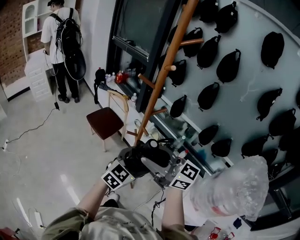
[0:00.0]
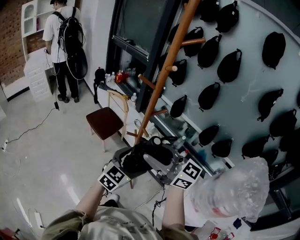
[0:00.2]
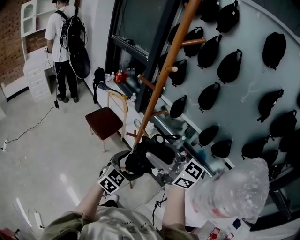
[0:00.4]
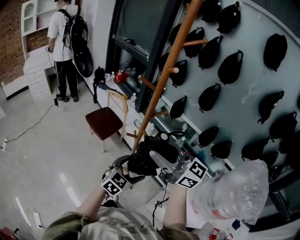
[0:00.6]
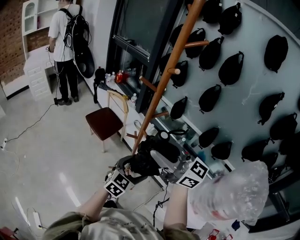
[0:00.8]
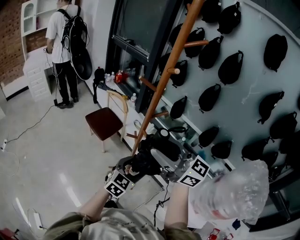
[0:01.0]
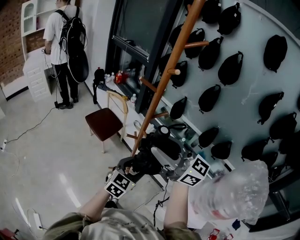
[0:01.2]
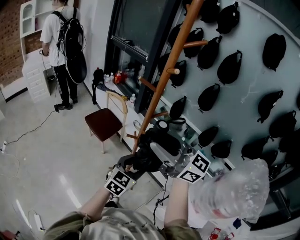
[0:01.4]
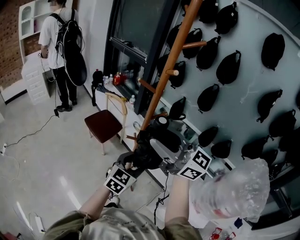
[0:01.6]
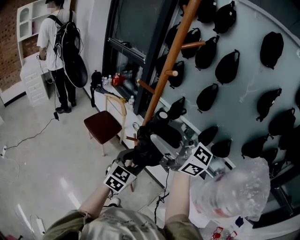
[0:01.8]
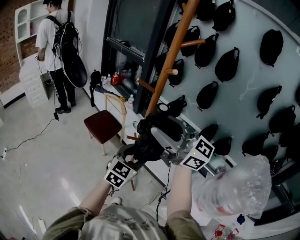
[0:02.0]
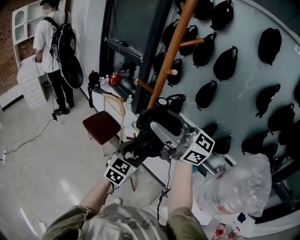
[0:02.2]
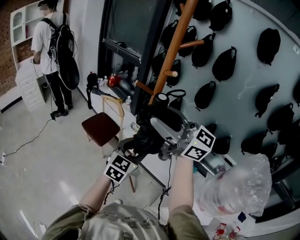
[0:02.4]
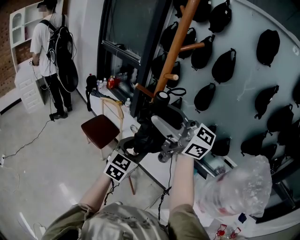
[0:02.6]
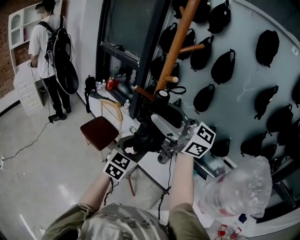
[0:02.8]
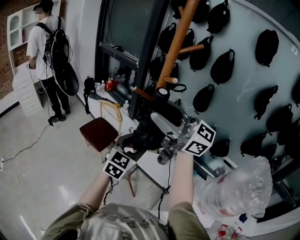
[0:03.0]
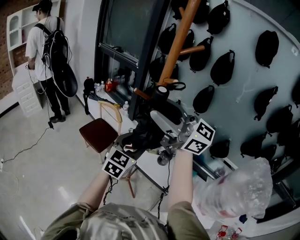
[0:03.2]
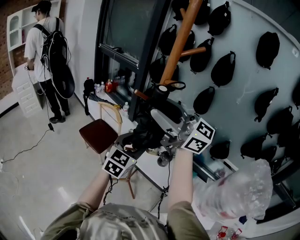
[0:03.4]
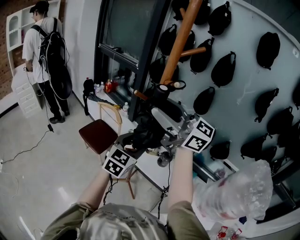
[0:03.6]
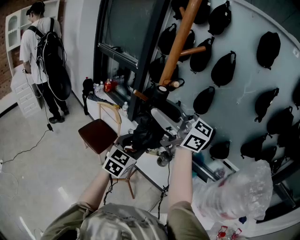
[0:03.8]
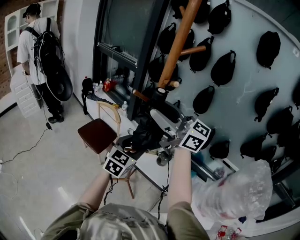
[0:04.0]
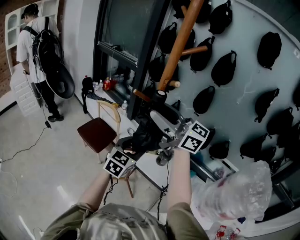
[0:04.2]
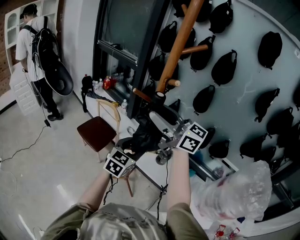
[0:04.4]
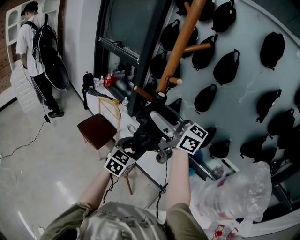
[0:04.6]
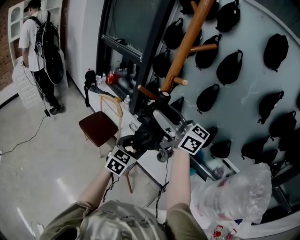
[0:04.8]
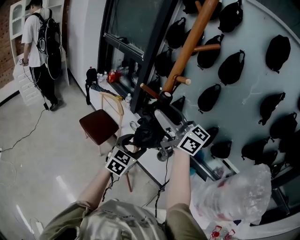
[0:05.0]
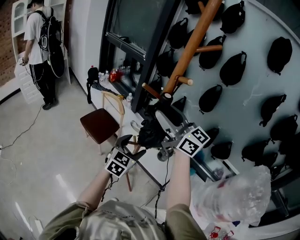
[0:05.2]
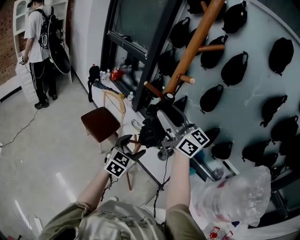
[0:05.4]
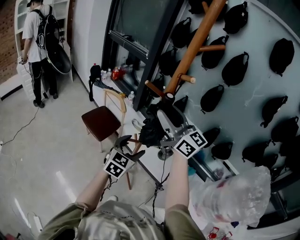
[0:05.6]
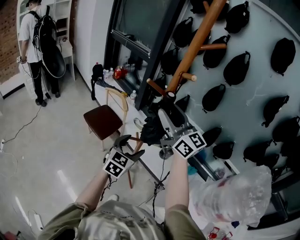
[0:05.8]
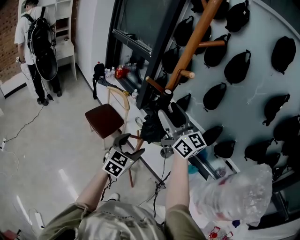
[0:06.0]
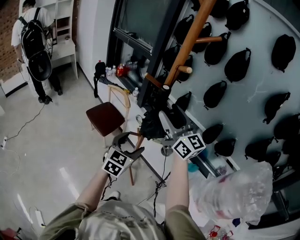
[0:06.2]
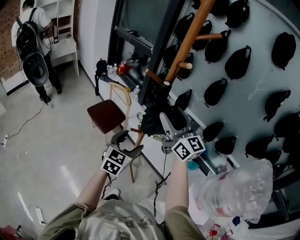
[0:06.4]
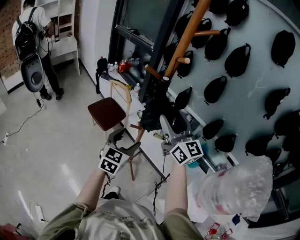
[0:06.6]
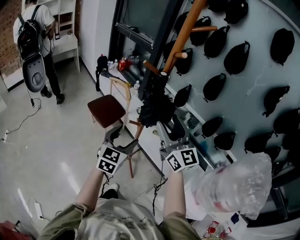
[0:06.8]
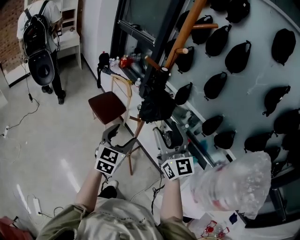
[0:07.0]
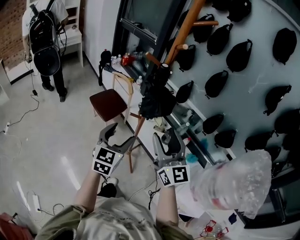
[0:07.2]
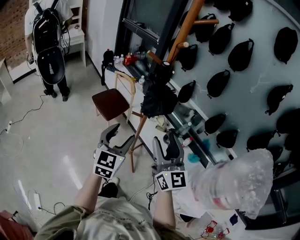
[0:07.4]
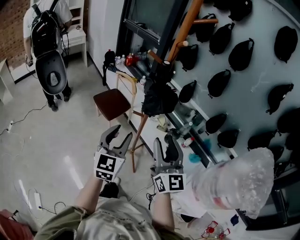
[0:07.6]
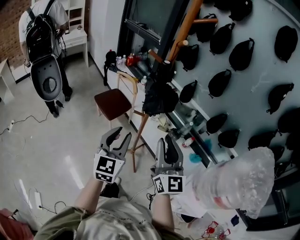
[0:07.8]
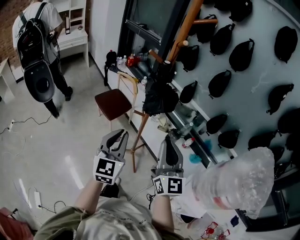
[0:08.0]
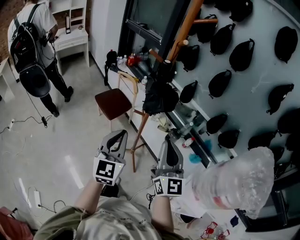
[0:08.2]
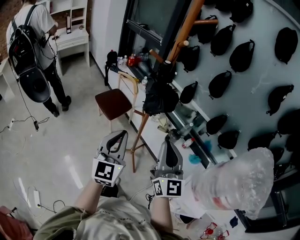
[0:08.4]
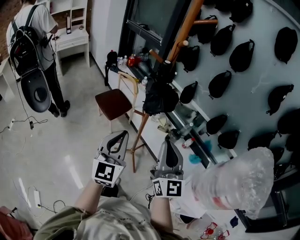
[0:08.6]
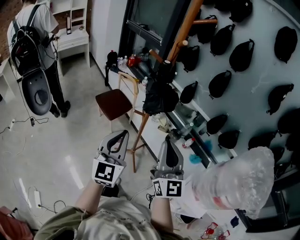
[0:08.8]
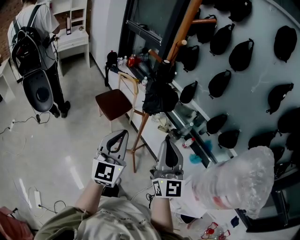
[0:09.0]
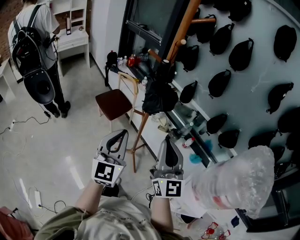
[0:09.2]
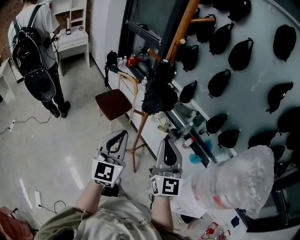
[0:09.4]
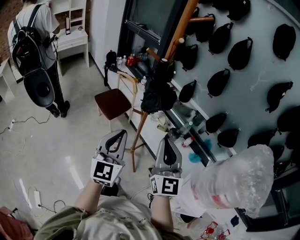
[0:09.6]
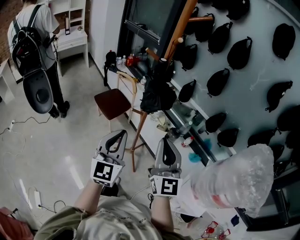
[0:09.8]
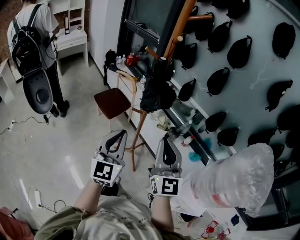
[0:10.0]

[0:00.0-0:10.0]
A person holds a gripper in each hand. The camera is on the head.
0:00.0 to 0:01.4: The right gripper moves upward, about 5 cm.
0:01.4 to 0:02.8: Both grippers travel together forward and upward, about 10 cm.
0:02.8 to 0:04.2: The right gripper heads forward, covering about 5 cm, while the left gripper changes place by approximately 5 cm.
0:04.2 to 0:05.8: Both grippers travel together downward, roughly 5 cm.
0:05.8 to 0:07.2: The right gripper is displaced backward and downward by roughly 20 cm, while the left gripper goes roughly 10 cm backward.
0:07.2 to 0:08.6: The left gripper moves backward and upward, roughly 10 cm, and closes up. Meanwhile the right gripper is displaced backward by roughly 5 cm, and closes up.
0:08.6 to 0:10.0: The grippers stay close to where they were, moving slightly.

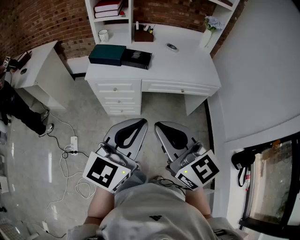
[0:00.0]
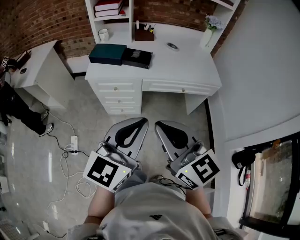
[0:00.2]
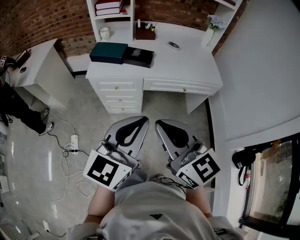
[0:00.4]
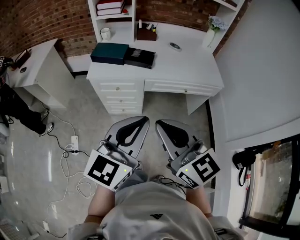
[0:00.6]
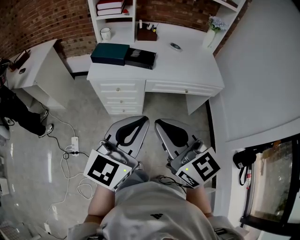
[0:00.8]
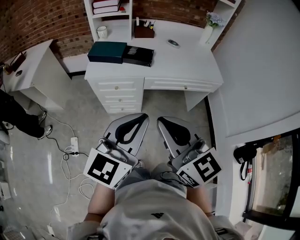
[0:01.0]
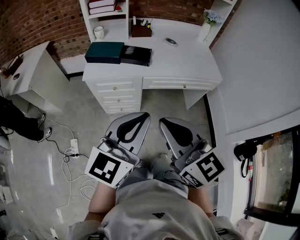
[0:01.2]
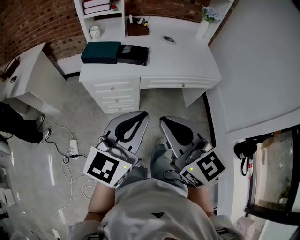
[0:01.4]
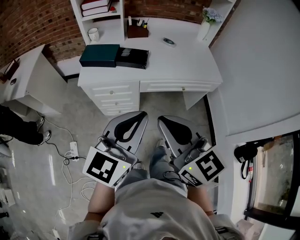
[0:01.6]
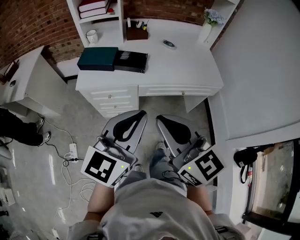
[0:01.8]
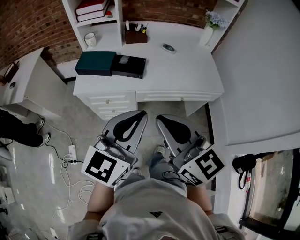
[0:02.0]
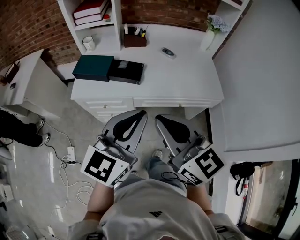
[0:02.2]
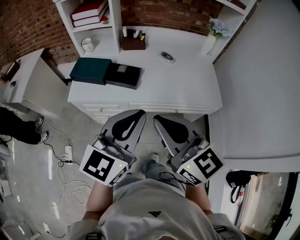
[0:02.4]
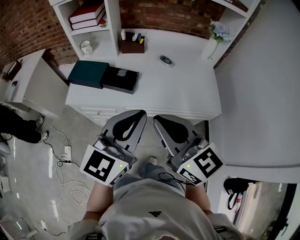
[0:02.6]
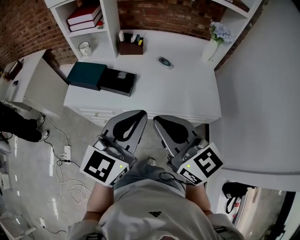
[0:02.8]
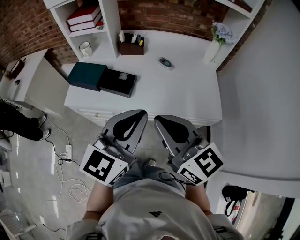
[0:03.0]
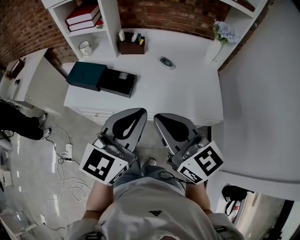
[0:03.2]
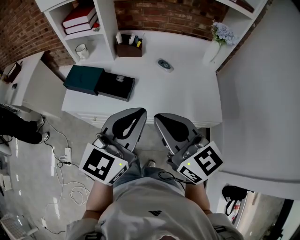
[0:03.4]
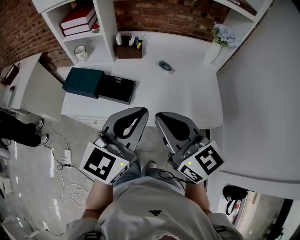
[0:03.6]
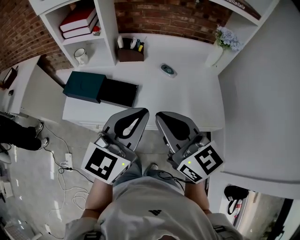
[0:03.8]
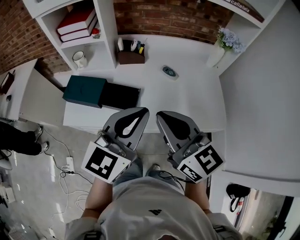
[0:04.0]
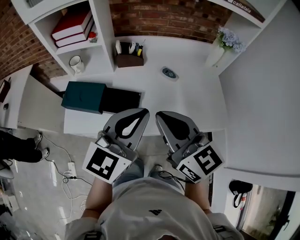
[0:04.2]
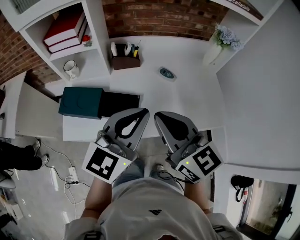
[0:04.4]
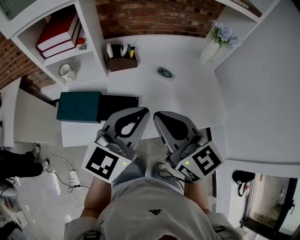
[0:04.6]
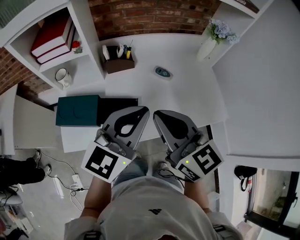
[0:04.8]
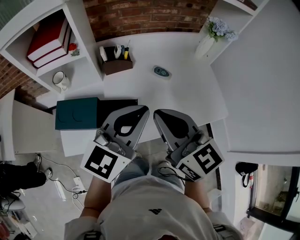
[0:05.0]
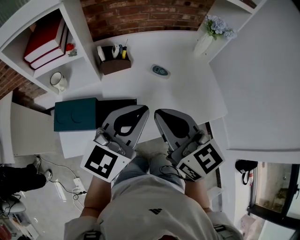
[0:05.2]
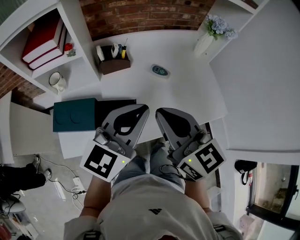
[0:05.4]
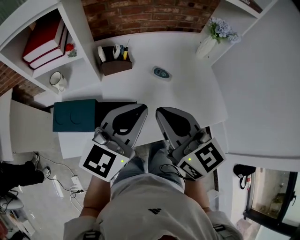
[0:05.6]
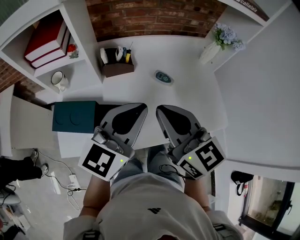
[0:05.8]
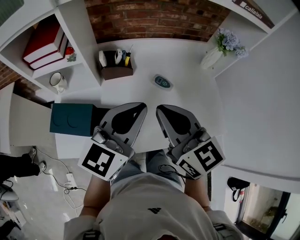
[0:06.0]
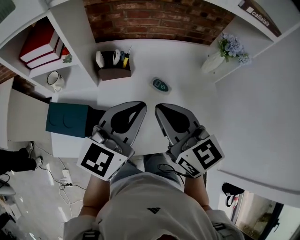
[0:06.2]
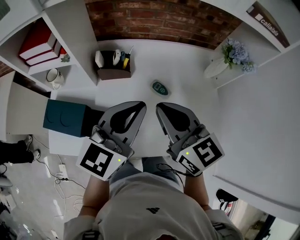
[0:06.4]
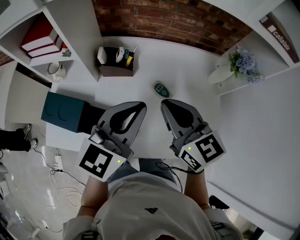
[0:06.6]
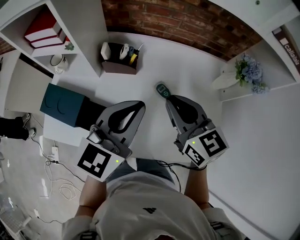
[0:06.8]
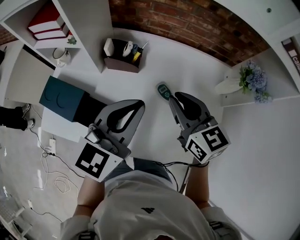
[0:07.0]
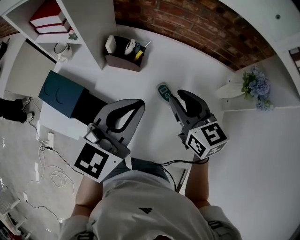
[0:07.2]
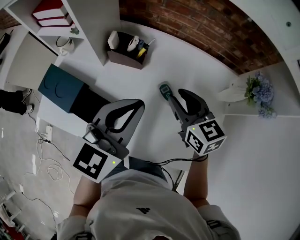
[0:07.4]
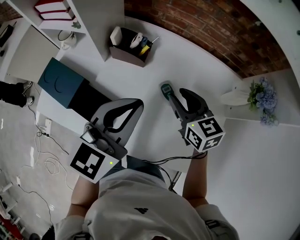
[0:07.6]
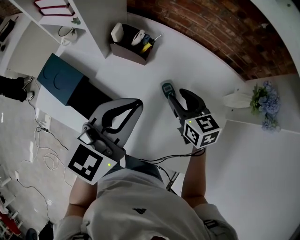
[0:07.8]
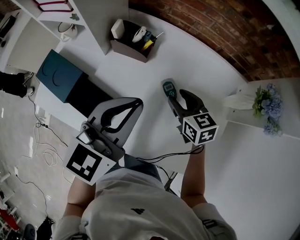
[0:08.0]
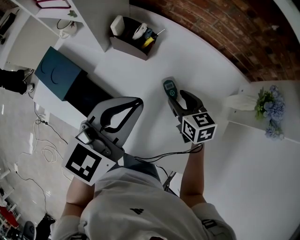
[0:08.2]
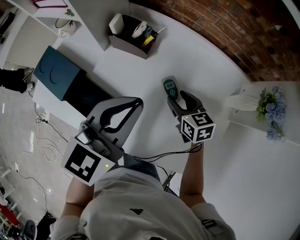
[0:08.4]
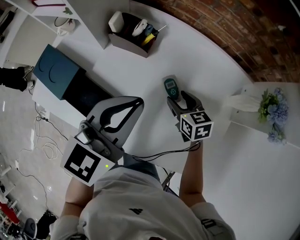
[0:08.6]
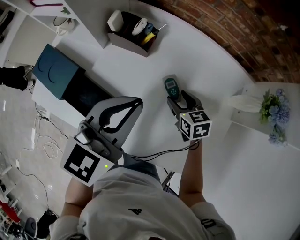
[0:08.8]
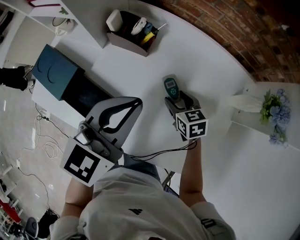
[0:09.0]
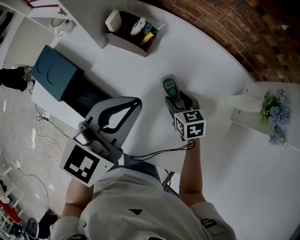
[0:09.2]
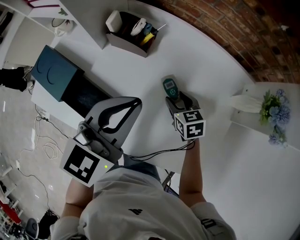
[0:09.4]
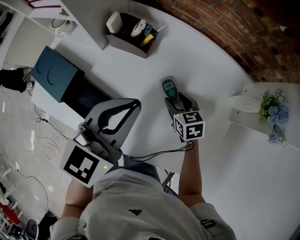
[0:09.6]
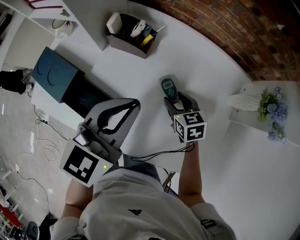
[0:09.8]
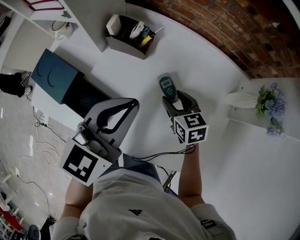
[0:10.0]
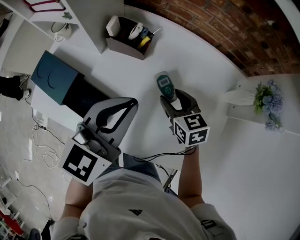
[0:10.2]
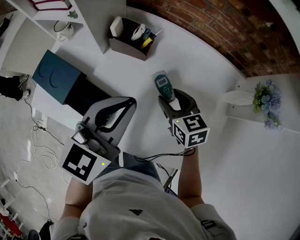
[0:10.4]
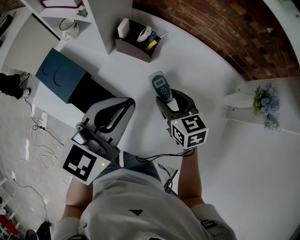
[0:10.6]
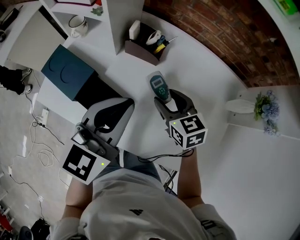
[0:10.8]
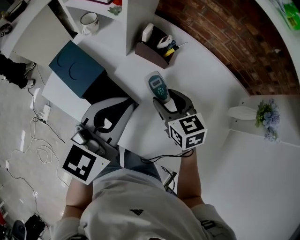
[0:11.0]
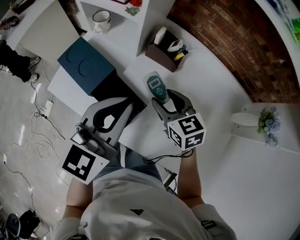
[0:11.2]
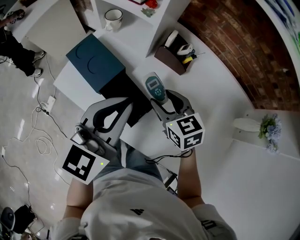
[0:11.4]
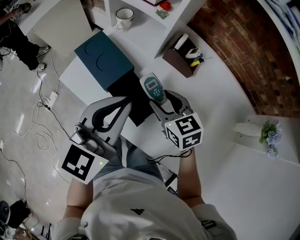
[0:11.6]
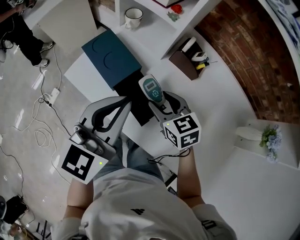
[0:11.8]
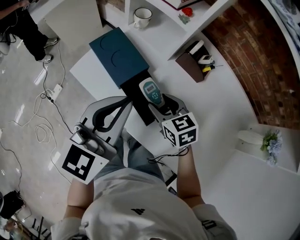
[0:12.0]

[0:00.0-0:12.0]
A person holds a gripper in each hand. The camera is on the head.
0:00.0 to 0:01.6: Both grippers travel together forward, approximately 10 cm.
0:01.6 to 0:03.0: The grippers both shift forward and to the right by some 25 cm.
0:03.0 to 0:04.4: Both grippers move forward and to the left, roughly 15 cm.
0:04.4 to 0:06.0: Both grippers travel together forward, some 10 cm.
0:06.0 to 0:07.6: The right gripper goes about 25 cm forward, downward and to the right, turns by about 30 degrees, and opens; the left gripper goes some 5 cm forward, and changes its angle by approximately 30 degrees.
0:07.6 to 0:09.0: The right gripper shifts approximately 15 cm downward, and opens.
0:09.0 to 0:10.4: The right gripper goes some 10 cm upward.
0:10.4 to 0:12.0: The two grippers go about 25 cm to the left. The right gripper turns by roughly 30 degrees, while the left gripper swivels some 20 degrees.

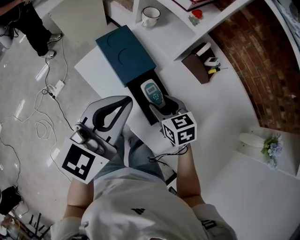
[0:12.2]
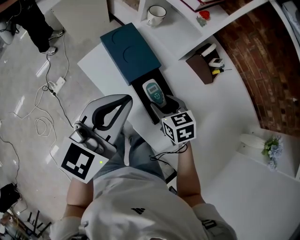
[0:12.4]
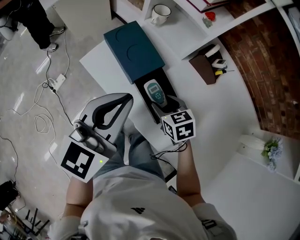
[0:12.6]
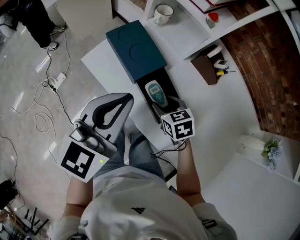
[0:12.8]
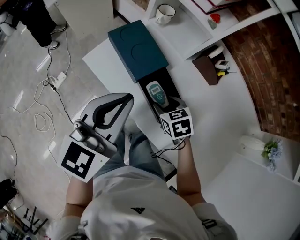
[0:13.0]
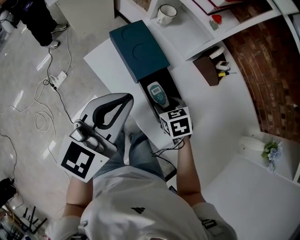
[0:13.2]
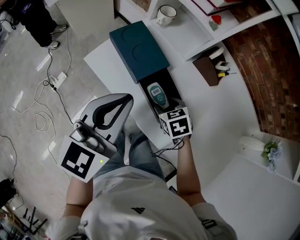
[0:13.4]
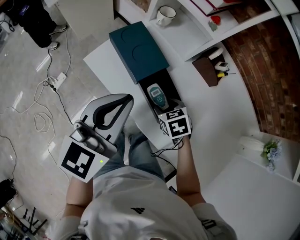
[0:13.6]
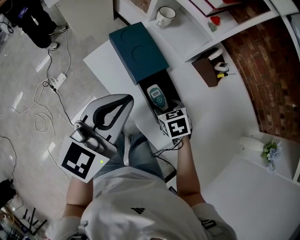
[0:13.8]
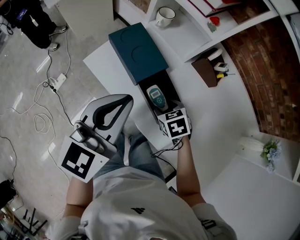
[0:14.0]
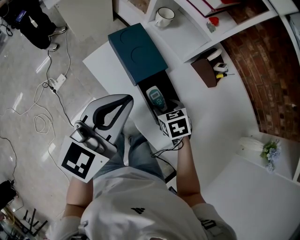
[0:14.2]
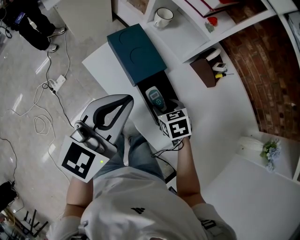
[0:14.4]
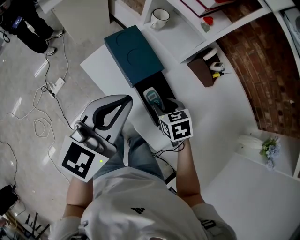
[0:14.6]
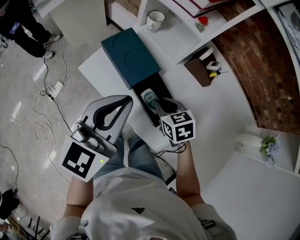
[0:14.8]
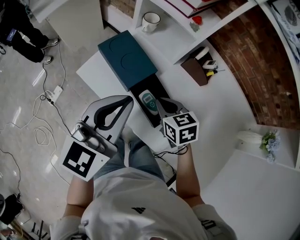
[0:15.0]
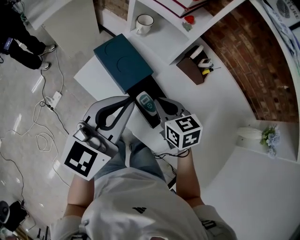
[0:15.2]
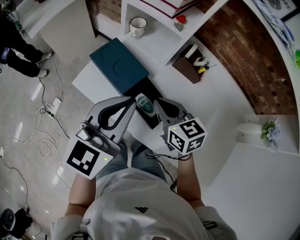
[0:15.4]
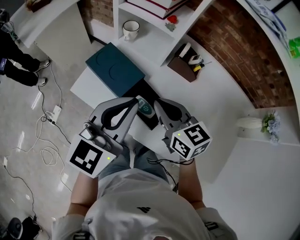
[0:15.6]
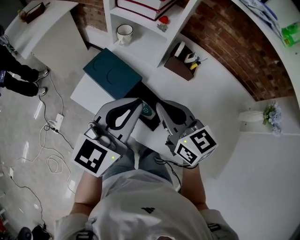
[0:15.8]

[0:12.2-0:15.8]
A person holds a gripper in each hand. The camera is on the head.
0:12.2 to 0:14.0: The right gripper travels downward by approximately 5 cm.
0:14.0 to 0:15.8: The left gripper goes some 10 cm to the right; the right gripper is displaced upward by about 25 cm, points its fingers about 50 degrees further upward, and closes.
